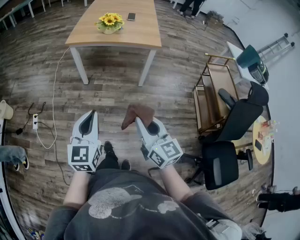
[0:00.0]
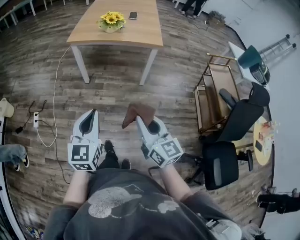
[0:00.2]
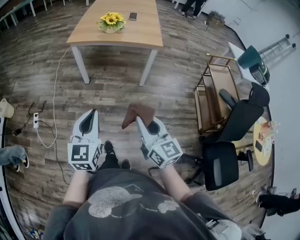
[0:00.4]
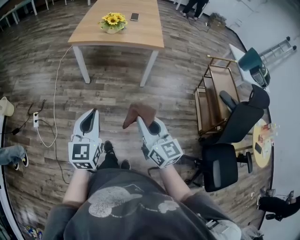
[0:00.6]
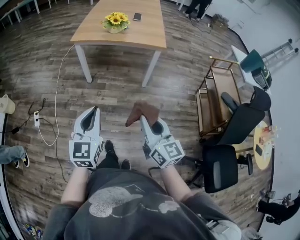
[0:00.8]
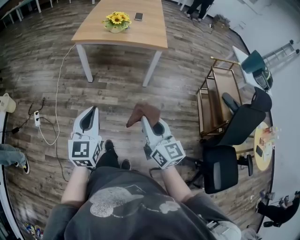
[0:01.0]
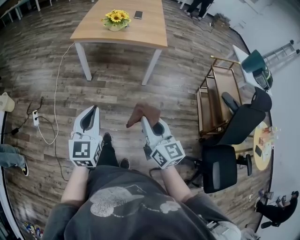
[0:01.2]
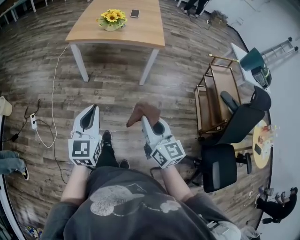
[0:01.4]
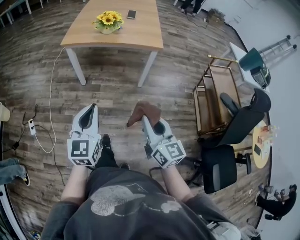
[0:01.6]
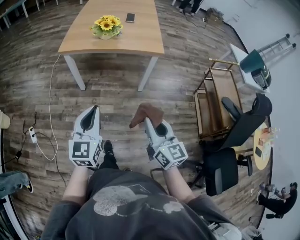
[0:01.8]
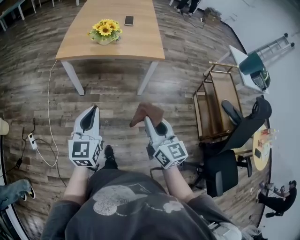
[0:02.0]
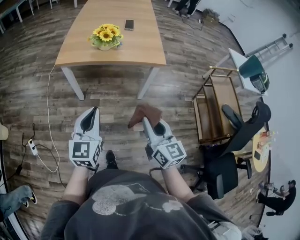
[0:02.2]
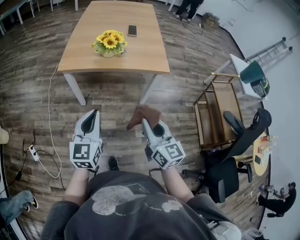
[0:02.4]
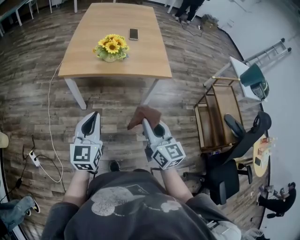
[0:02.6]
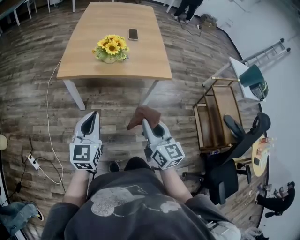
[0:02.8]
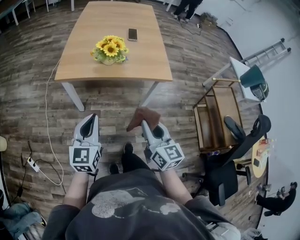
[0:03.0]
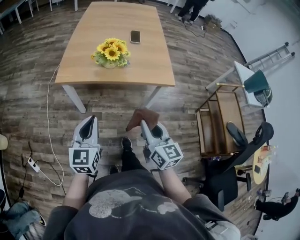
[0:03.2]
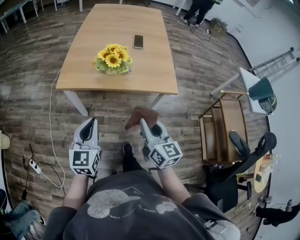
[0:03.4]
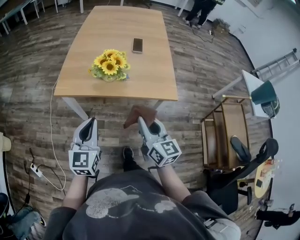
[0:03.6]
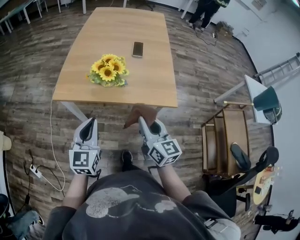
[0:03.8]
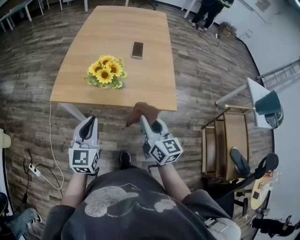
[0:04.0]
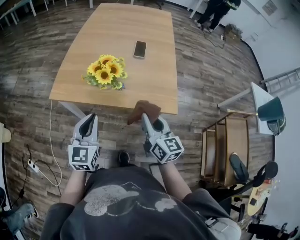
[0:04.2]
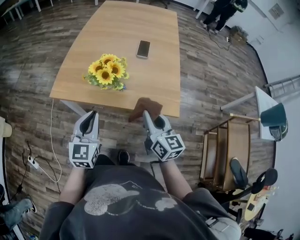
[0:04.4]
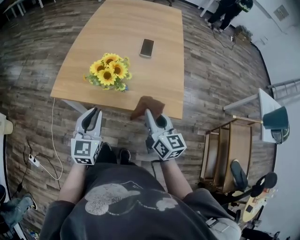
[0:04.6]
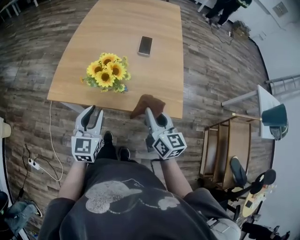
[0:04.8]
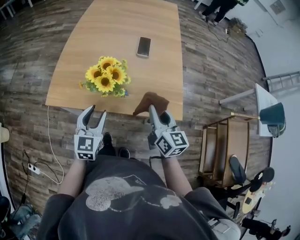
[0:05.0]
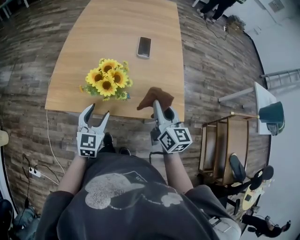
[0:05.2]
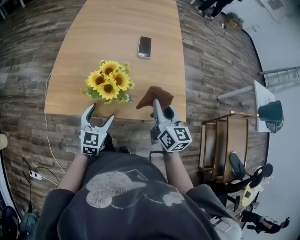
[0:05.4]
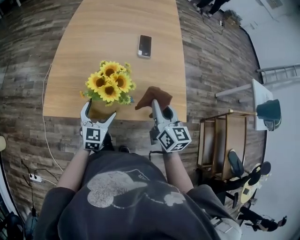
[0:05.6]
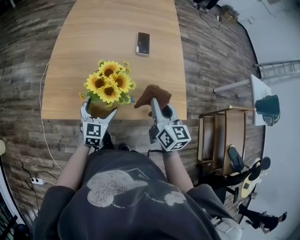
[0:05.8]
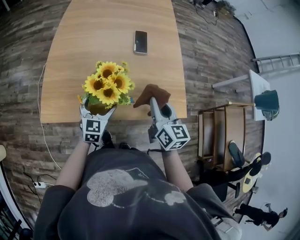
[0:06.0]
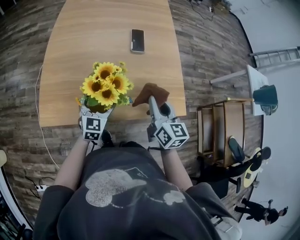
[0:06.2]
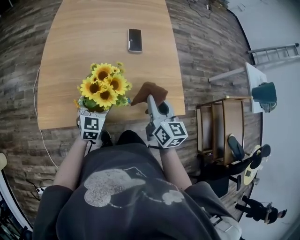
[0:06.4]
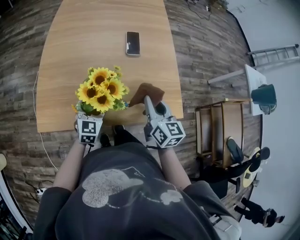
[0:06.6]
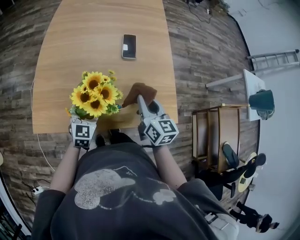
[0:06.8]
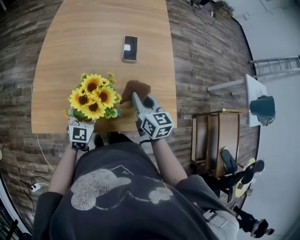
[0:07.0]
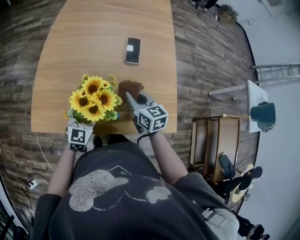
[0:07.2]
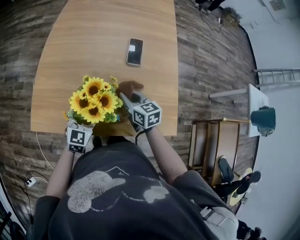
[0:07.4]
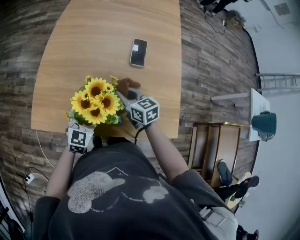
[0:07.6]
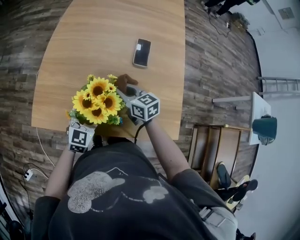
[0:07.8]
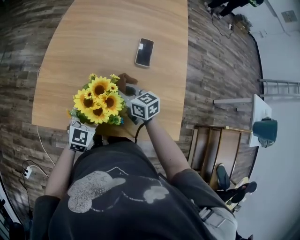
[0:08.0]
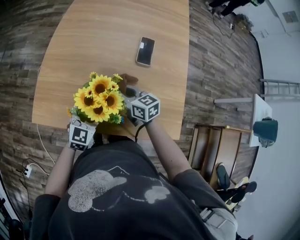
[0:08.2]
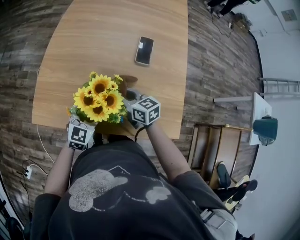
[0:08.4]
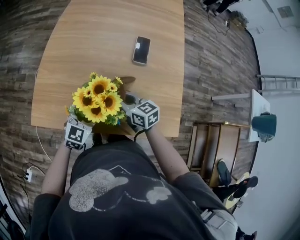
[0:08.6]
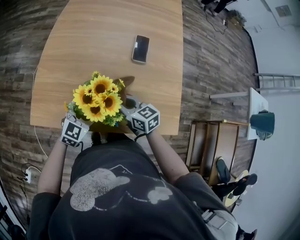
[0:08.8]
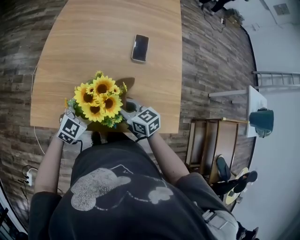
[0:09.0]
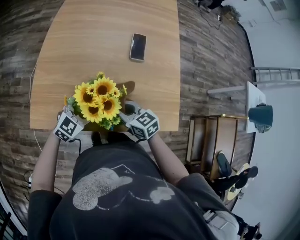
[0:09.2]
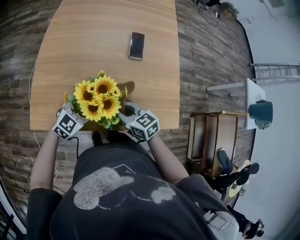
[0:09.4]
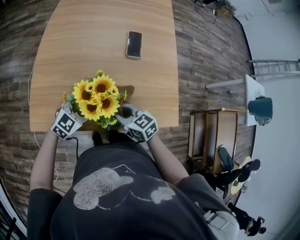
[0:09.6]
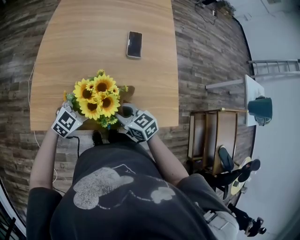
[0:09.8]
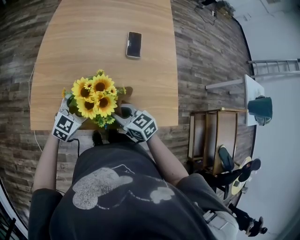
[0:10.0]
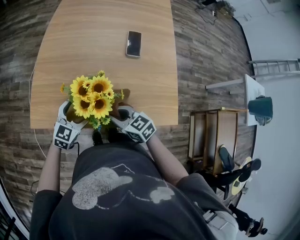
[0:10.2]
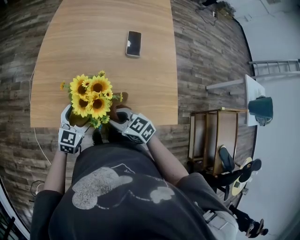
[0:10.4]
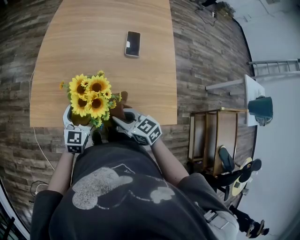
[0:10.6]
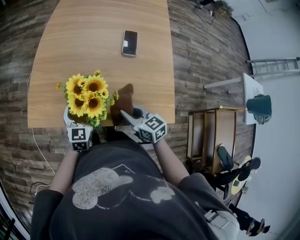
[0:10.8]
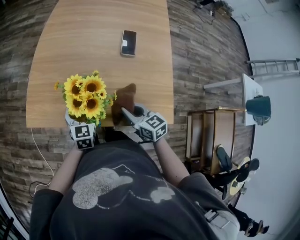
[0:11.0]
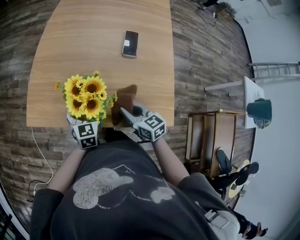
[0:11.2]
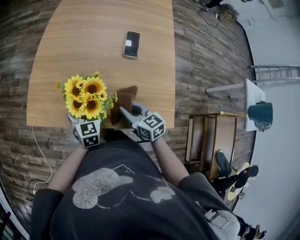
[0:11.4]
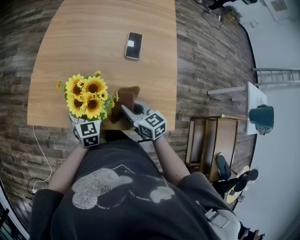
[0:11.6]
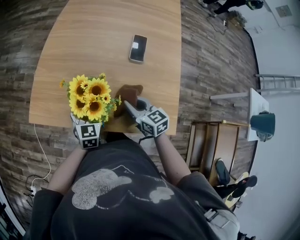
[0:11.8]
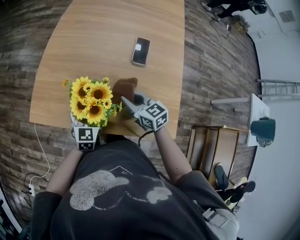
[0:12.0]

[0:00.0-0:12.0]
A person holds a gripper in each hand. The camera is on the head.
0:00.0 to 0:01.6: The two grippers go approximately 10 cm forward.
0:01.6 to 0:03.0: Both grippers travel together forward, some 25 cm.
0:03.0 to 0:04.4: The right gripper travels forward by some 25 cm; the left gripper goes roughly 20 cm forward and to the right.
0:04.4 to 0:06.0: The left gripper heads forward and downward, covering roughly 25 cm, and opens up. Meanwhile the right gripper goes roughly 10 cm forward.
0:06.0 to 0:07.6: The right gripper shifts about 20 cm forward, downward and to the left, and turns by roughly 40 degrees.
0:07.6 to 0:09.0: The right gripper travels backward by approximately 5 cm.
0:09.0 to 0:10.4: The right gripper travels backward by approximately 10 cm. The left gripper changes place by approximately 5 cm.
0:10.4 to 0:12.0: The right gripper goes approximately 15 cm to the right and forward. The left gripper ends up about 5 cm from where it was, and swivels roughly 20 degrees.

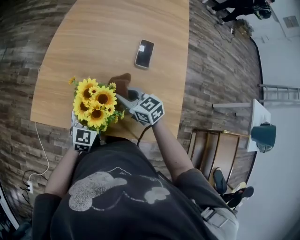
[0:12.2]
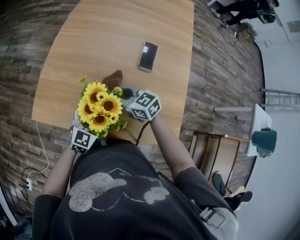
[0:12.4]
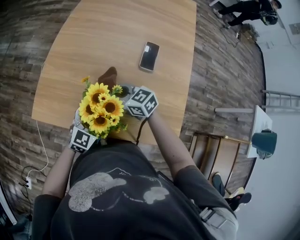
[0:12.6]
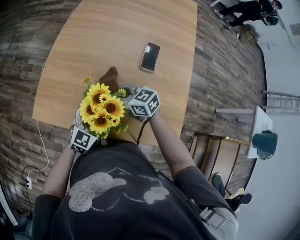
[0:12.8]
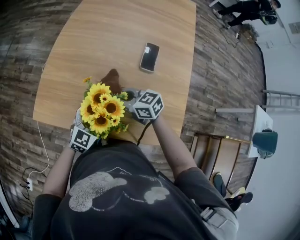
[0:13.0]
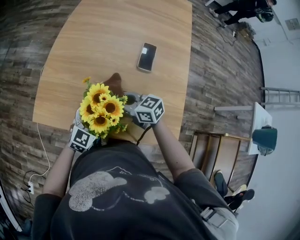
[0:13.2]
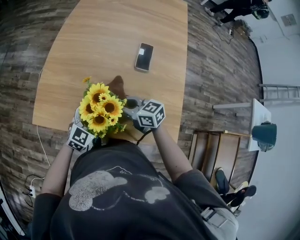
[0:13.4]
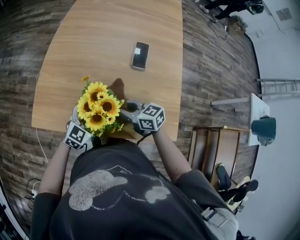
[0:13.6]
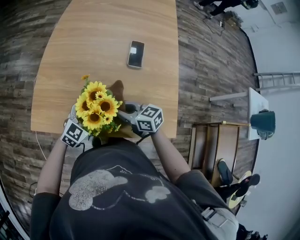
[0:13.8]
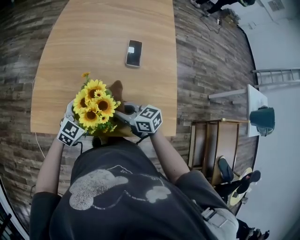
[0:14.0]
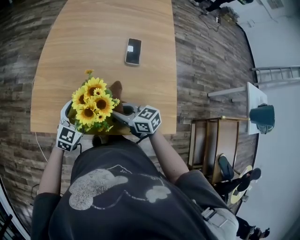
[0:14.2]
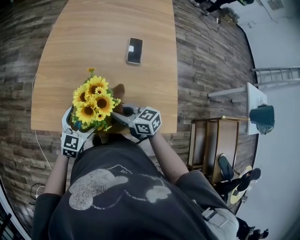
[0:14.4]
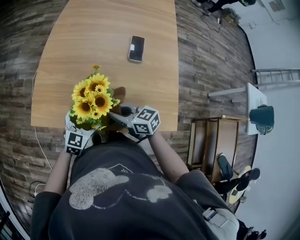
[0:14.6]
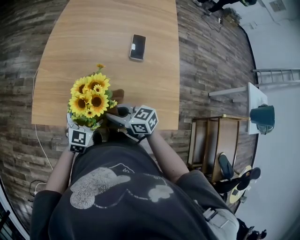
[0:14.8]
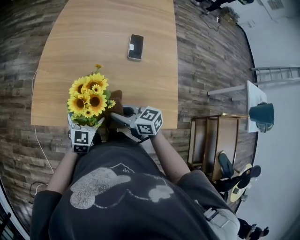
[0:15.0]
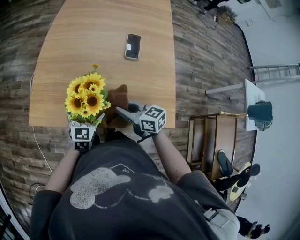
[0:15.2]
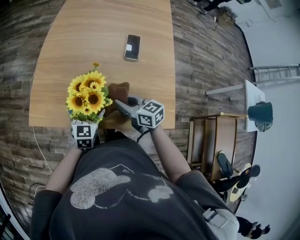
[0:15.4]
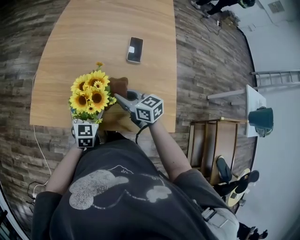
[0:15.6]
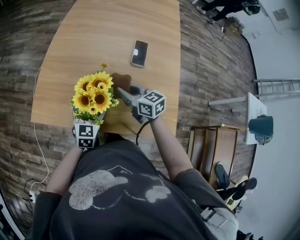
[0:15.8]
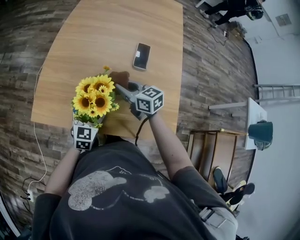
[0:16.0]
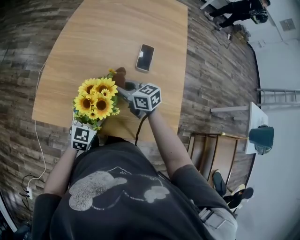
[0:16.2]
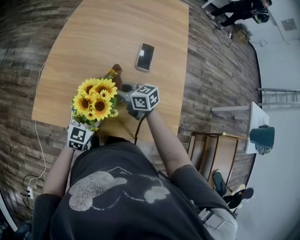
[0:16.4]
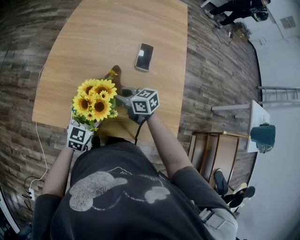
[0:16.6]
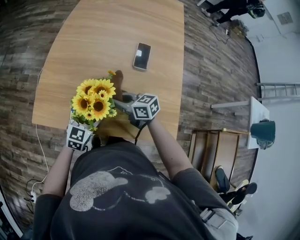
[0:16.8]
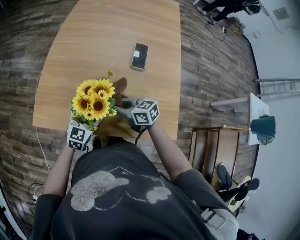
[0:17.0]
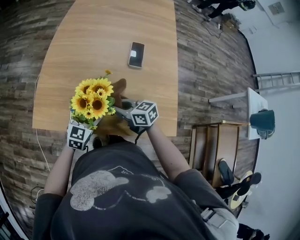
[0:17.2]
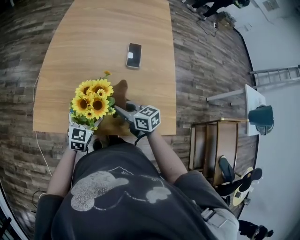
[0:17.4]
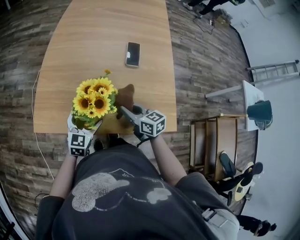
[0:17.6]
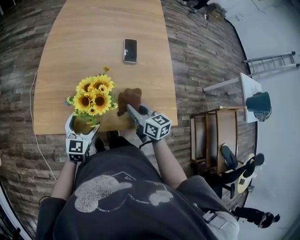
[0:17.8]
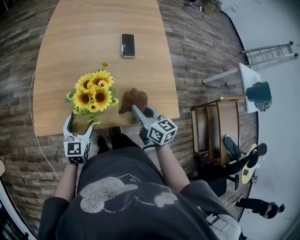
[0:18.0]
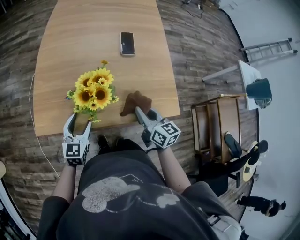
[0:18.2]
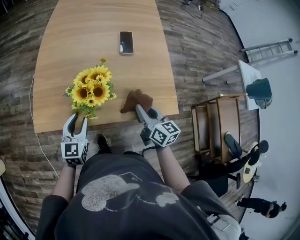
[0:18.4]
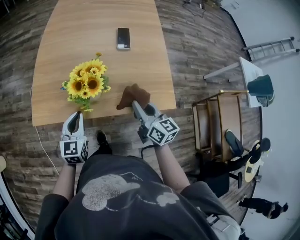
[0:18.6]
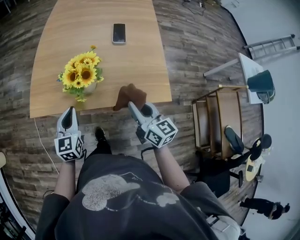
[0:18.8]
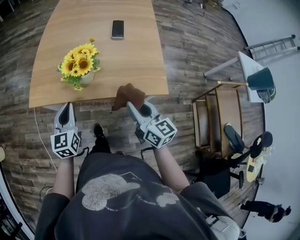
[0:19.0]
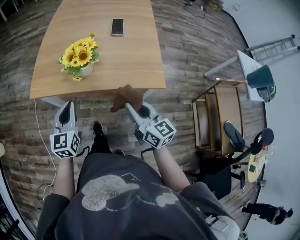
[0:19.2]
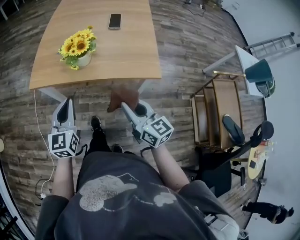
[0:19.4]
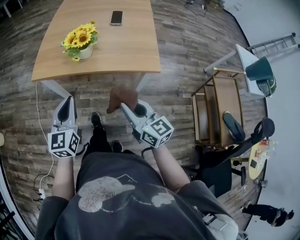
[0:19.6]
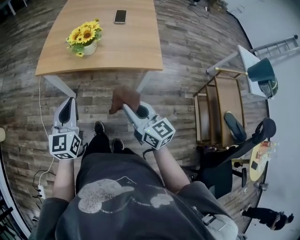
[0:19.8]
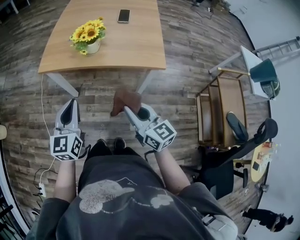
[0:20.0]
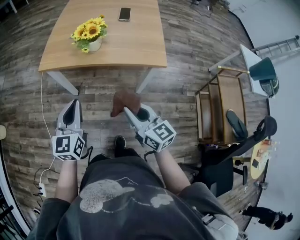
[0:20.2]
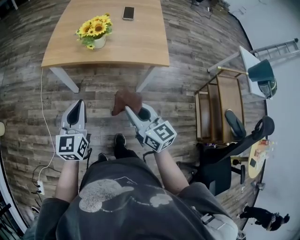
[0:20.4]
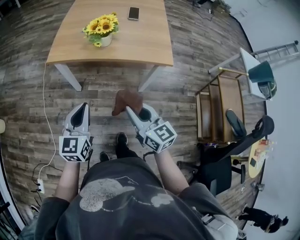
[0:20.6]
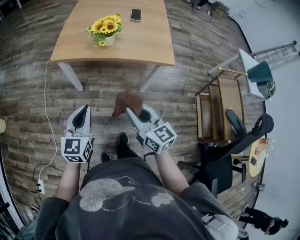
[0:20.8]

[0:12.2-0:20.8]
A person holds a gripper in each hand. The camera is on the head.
0:12.2 to 0:13.6: The left gripper swivels roughly 20 degrees.
0:13.6 to 0:15.0: The left gripper turns by about 20 degrees; the right gripper travels backward by some 5 cm.
0:15.0 to 0:16.6: The right gripper moves forward, approximately 10 cm.
0:16.6 to 0:18.0: The left gripper moves to the left, approximately 5 cm. The right gripper moves backward and to the right, about 15 cm, and rotates approximately 40 degrees.
0:18.0 to 0:19.4: The right gripper goes about 25 cm backward, while the left gripper is displaced backward and upward by about 25 cm, and closes up.
0:19.4 to 0:20.8: The left gripper travels backward by approximately 15 cm. Meanwhile the right gripper is displaced backward and to the left by roughly 15 cm.

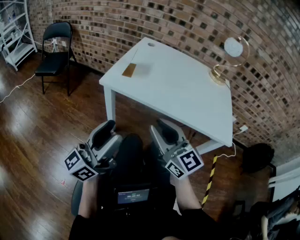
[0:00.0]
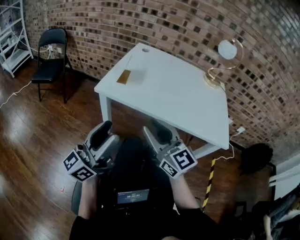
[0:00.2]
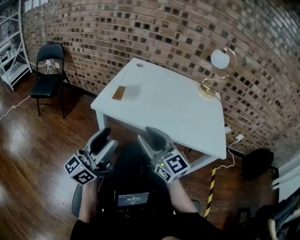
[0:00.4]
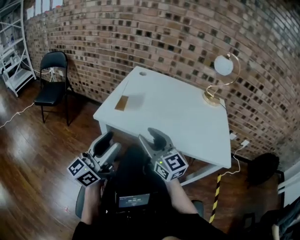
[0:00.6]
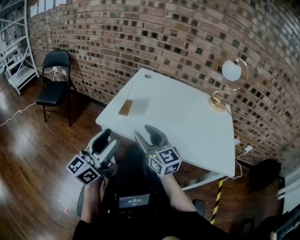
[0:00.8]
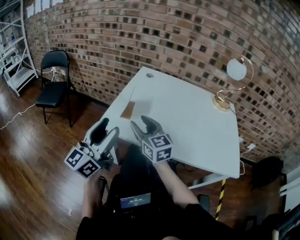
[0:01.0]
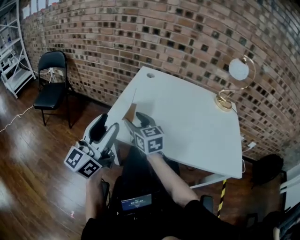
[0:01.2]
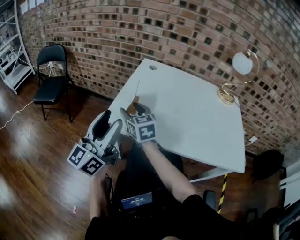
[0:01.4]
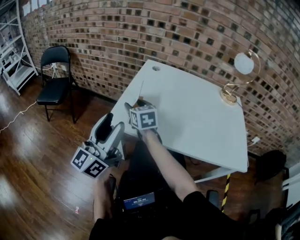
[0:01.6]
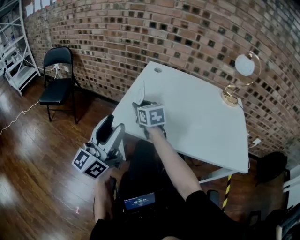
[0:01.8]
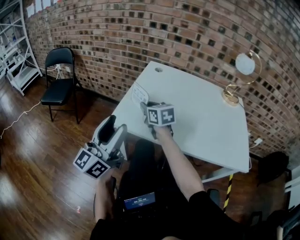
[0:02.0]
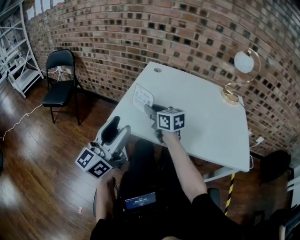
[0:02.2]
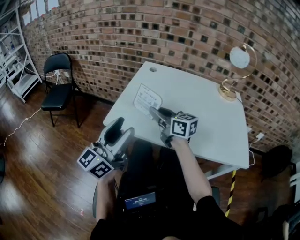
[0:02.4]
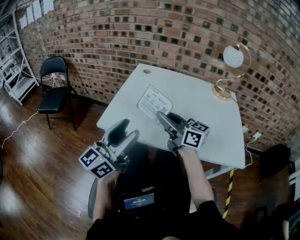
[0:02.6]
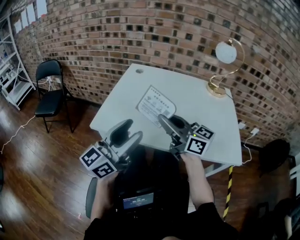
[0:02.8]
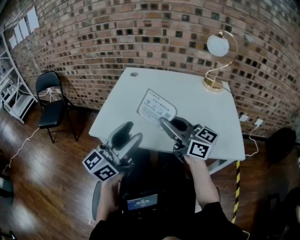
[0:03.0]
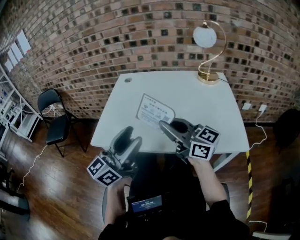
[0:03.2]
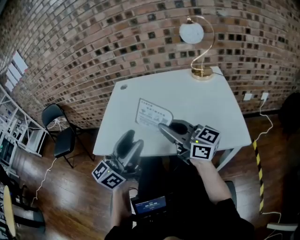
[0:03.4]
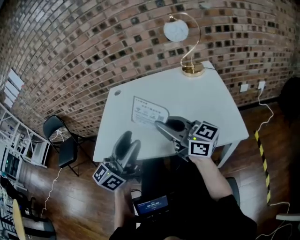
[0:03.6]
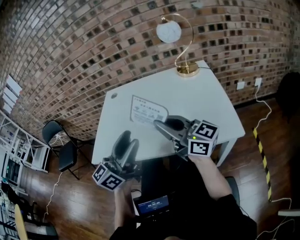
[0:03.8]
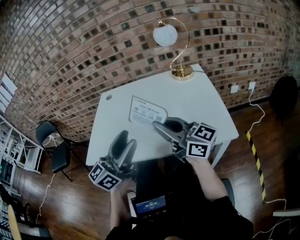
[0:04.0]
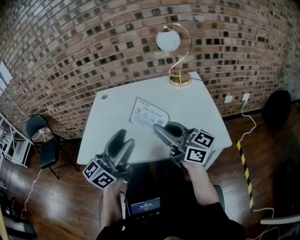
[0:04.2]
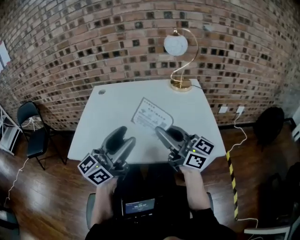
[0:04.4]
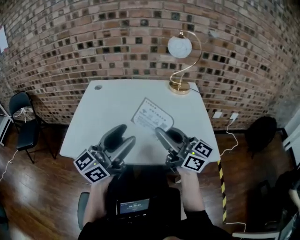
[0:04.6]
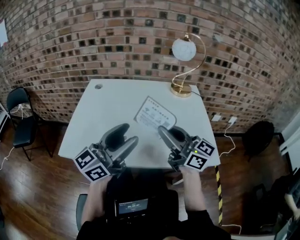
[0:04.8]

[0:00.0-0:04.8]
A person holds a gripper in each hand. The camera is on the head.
0:00.0 to 0:01.6: The right gripper heads forward and to the left, covering roughly 35 cm, rotates about 30 degrees, and opens up; the left gripper heads forward, covering approximately 20 cm.
0:01.6 to 0:03.2: The left gripper moves to the right, some 20 cm, and changes its angle by roughly 20 degrees; the right gripper heads to the right, backward and upward, covering approximately 35 cm, tilts its fingers approximately 40 degrees upward, and closes its fingers.
0:03.2 to 0:04.8: The left gripper moves to the right and forward, about 10 cm; the right gripper goes about 10 cm to the right.
